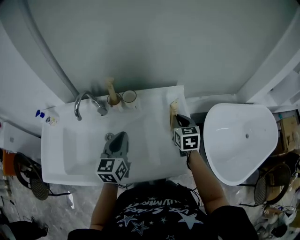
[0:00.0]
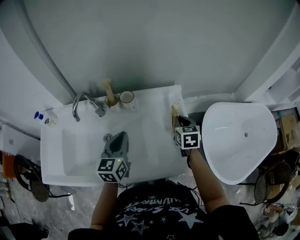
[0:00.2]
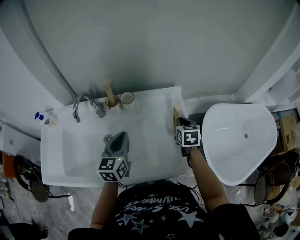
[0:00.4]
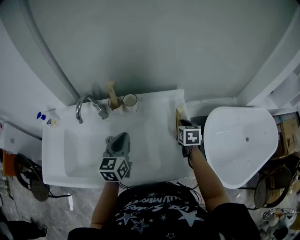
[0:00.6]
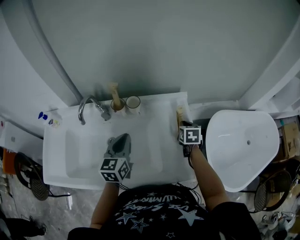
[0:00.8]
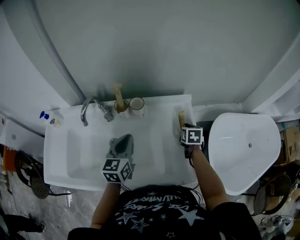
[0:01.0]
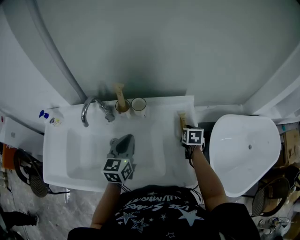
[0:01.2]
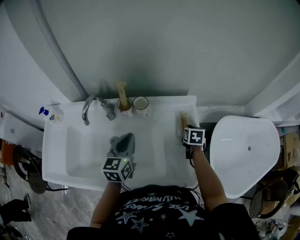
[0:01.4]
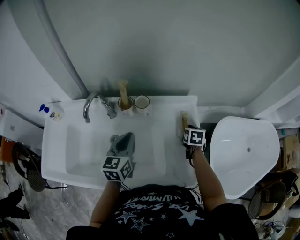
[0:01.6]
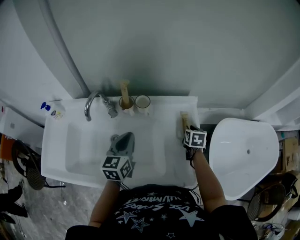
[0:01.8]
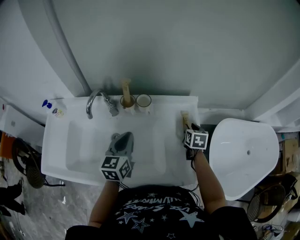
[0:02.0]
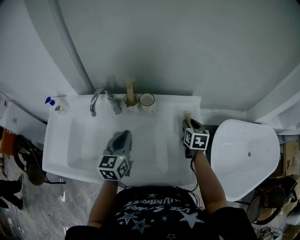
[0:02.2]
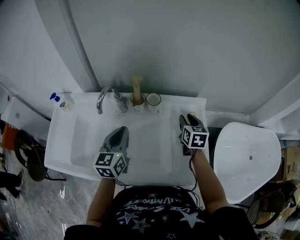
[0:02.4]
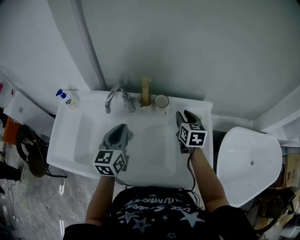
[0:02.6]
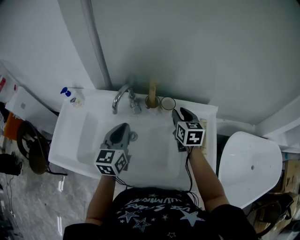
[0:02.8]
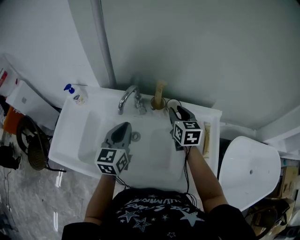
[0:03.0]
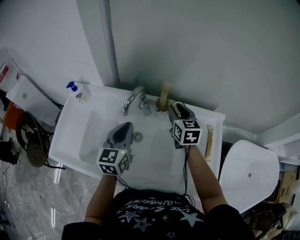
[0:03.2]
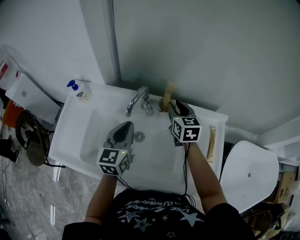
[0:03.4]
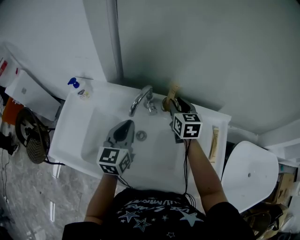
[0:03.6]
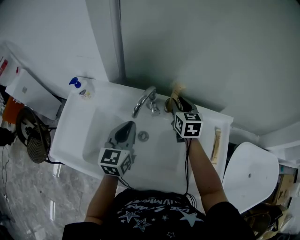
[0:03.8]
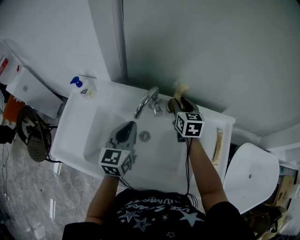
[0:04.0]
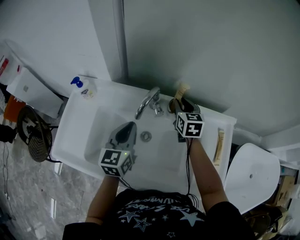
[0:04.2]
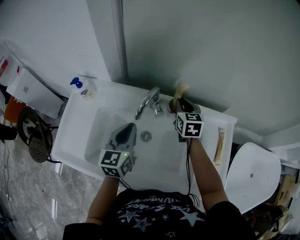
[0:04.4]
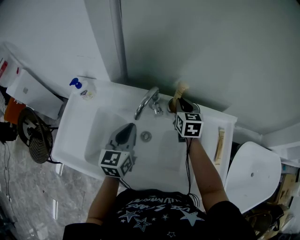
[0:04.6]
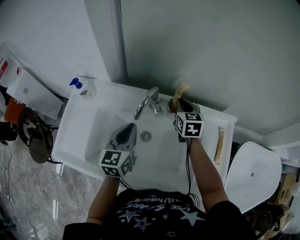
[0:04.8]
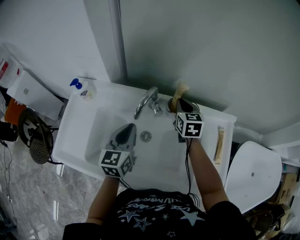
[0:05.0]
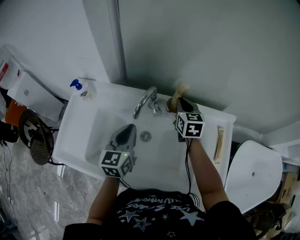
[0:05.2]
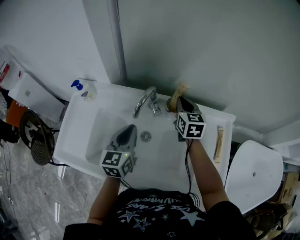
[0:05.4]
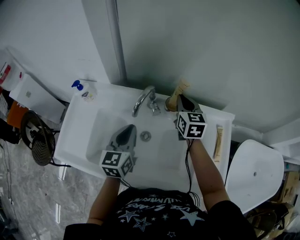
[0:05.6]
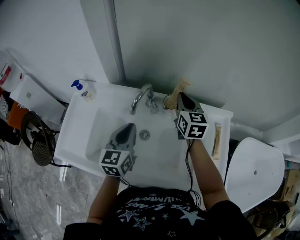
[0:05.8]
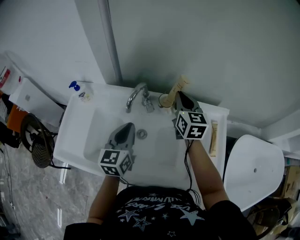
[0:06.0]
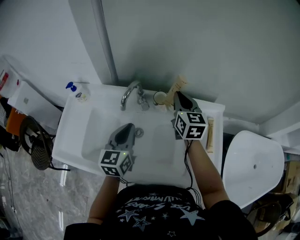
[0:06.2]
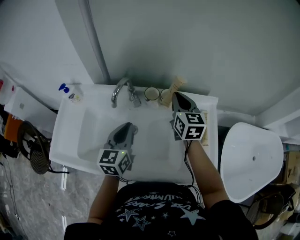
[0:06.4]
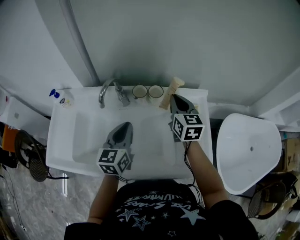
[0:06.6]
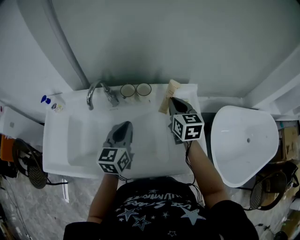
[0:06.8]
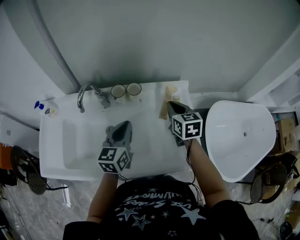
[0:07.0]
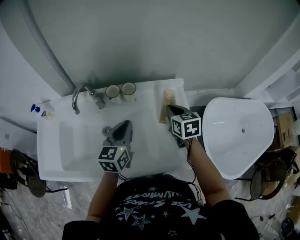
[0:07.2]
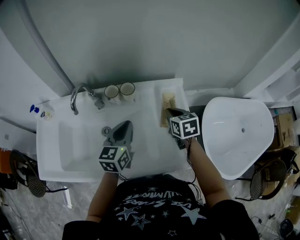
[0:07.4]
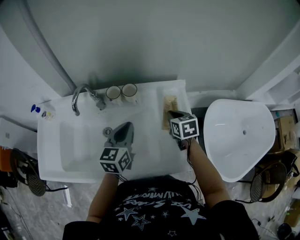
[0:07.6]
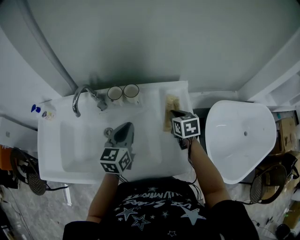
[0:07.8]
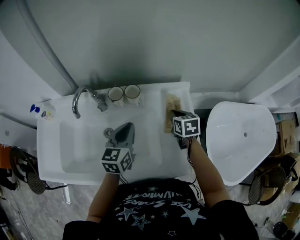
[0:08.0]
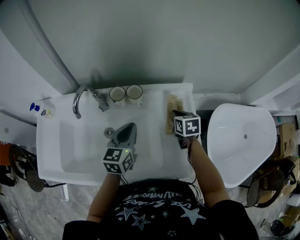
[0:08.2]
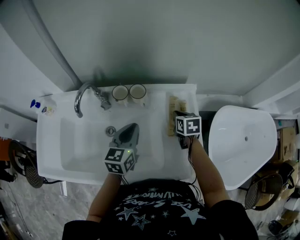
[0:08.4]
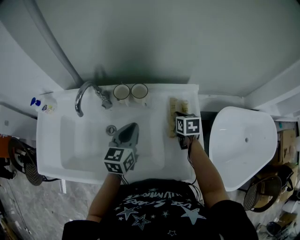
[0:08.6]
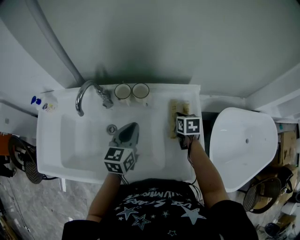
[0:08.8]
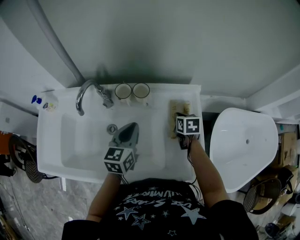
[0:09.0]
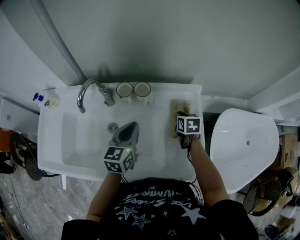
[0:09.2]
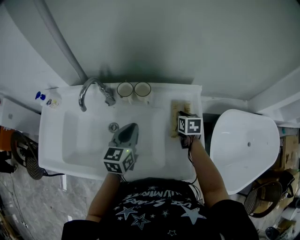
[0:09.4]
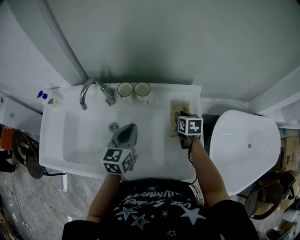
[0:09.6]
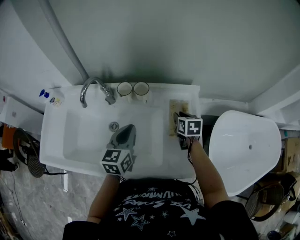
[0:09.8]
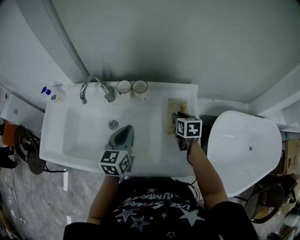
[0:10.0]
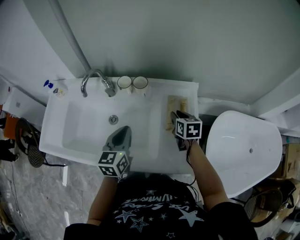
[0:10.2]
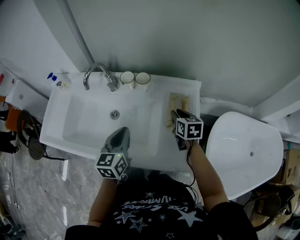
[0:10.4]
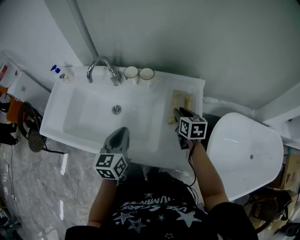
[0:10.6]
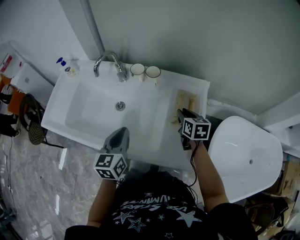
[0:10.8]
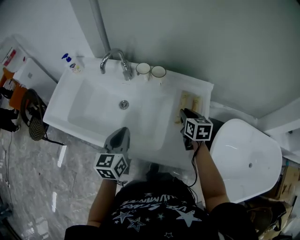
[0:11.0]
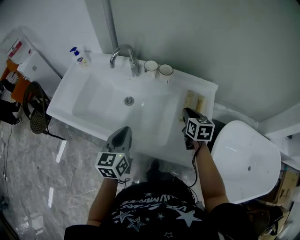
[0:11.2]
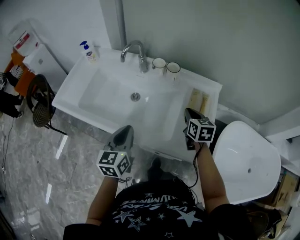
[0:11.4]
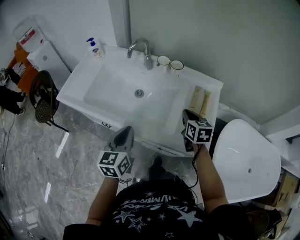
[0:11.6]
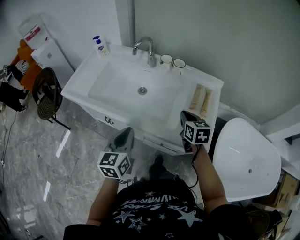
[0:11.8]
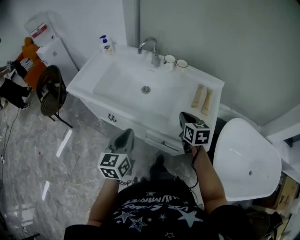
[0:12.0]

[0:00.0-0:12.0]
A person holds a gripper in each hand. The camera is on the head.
0:00.0 to 0:01.6: The left gripper moves about 5 cm. Meanwhile the right gripper moves downward and forward, roughly 10 cm, and turns by roughly 20 degrees.
0:01.6 to 0:03.0: The right gripper goes about 30 cm to the left and upward, swivels about 40 degrees, and opens its fingers; the left gripper heads to the left, covering approximately 15 cm.
0:03.0 to 0:04.4: The right gripper goes some 10 cm forward and to the left. The left gripper heads to the left, covering approximately 5 cm.
0:04.4 to 0:06.0: The left gripper changes place by approximately 5 cm; the right gripper heads upward, covering some 10 cm.
0:06.0 to 0:07.6: The right gripper heads to the right, downward and backward, covering about 30 cm, and swivels roughly 30 degrees. The left gripper is displaced to the right by some 20 cm.
0:07.6 to 0:09.0: The left gripper moves about 5 cm. Meanwhile the right gripper heads downward and forward, covering about 10 cm.
0:09.0 to 0:10.4: The right gripper heads upward and backward, covering about 10 cm, and opens up, while the left gripper shifts some 10 cm backward.
0:10.4 to 0:12.0: The grippers both shift backward and to the left by some 25 cm. The right gripper closes.

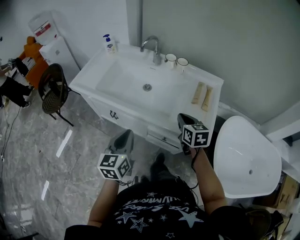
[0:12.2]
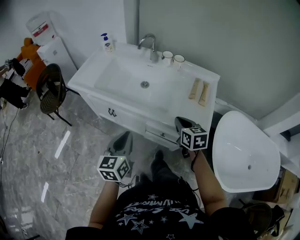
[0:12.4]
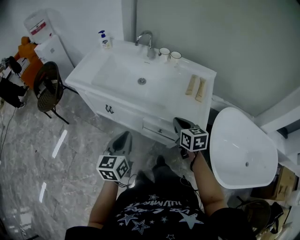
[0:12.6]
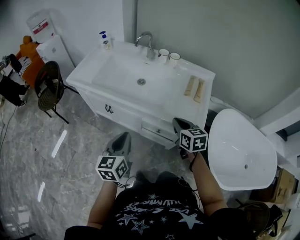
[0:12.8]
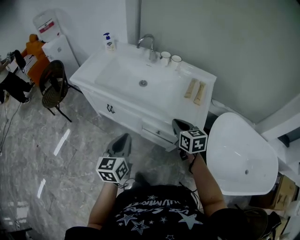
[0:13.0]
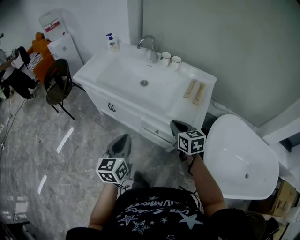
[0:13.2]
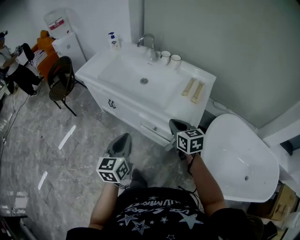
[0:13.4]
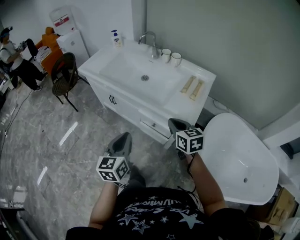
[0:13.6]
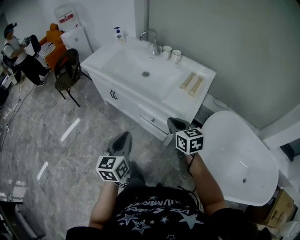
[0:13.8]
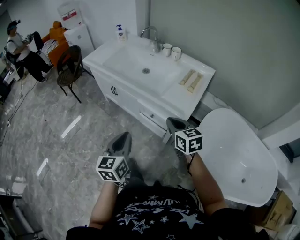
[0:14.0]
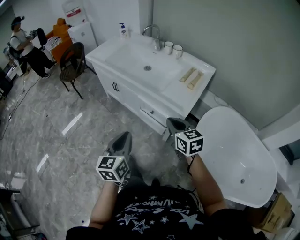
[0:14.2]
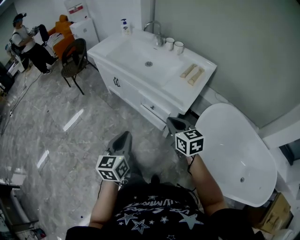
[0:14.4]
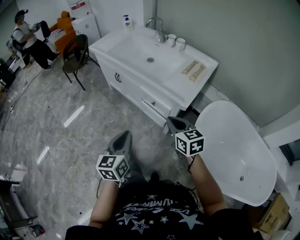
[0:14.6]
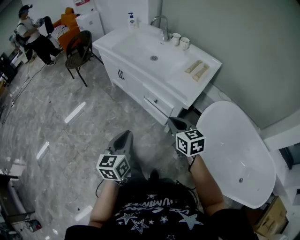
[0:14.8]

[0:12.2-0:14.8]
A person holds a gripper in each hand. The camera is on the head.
0:12.2 to 0:13.4: The left gripper moves backward and to the right, some 15 cm. Meanwhile the right gripper goes roughly 10 cm backward.
0:13.4 to 0:14.8: The grippers both shift backward by approximately 20 cm.

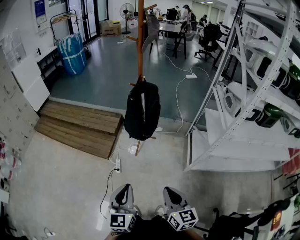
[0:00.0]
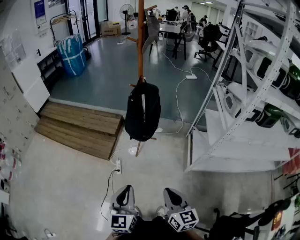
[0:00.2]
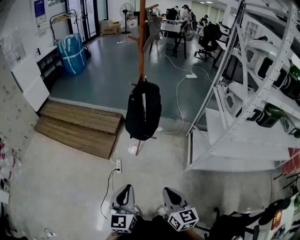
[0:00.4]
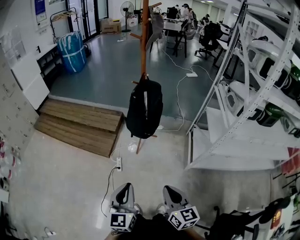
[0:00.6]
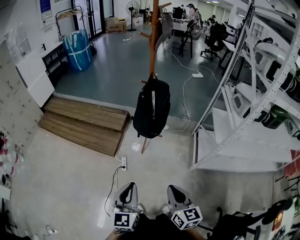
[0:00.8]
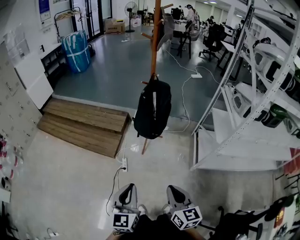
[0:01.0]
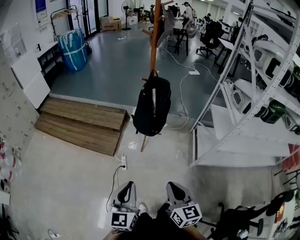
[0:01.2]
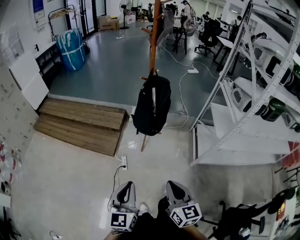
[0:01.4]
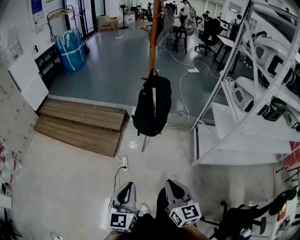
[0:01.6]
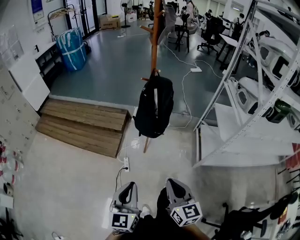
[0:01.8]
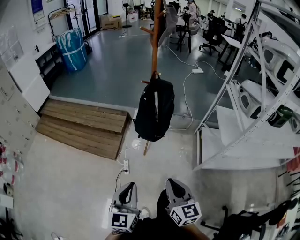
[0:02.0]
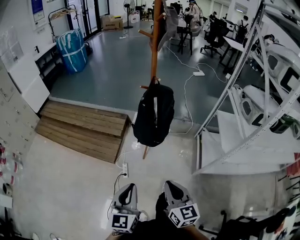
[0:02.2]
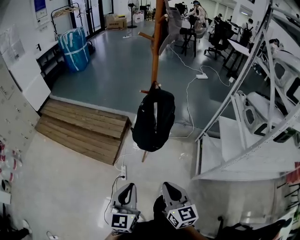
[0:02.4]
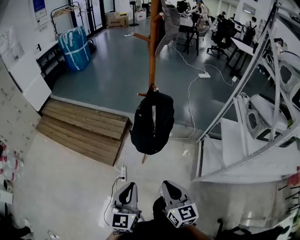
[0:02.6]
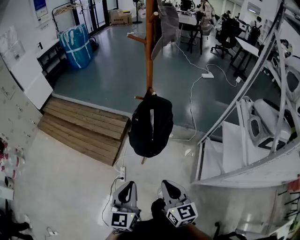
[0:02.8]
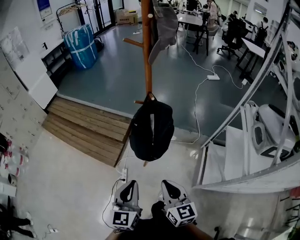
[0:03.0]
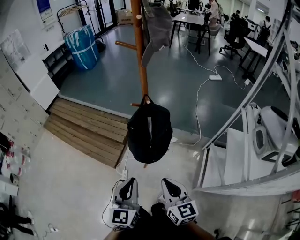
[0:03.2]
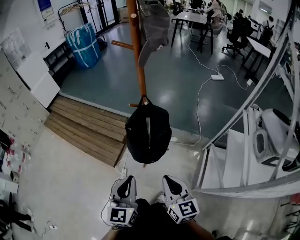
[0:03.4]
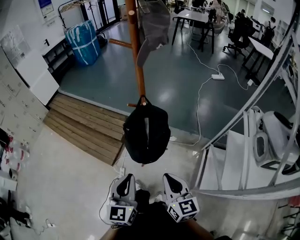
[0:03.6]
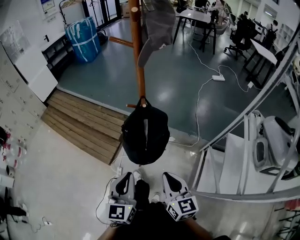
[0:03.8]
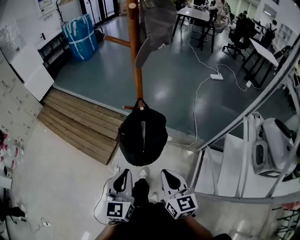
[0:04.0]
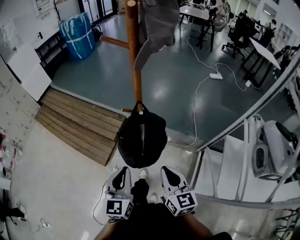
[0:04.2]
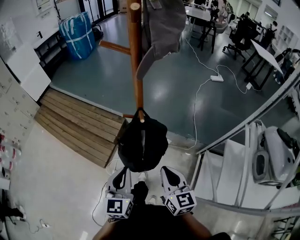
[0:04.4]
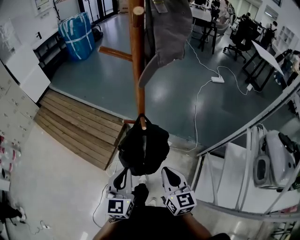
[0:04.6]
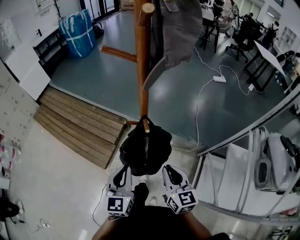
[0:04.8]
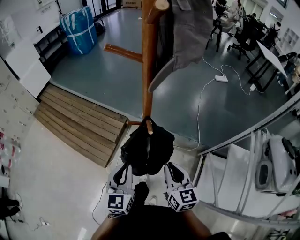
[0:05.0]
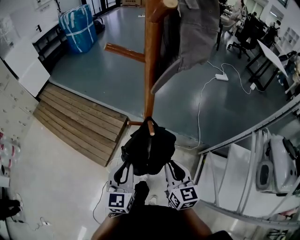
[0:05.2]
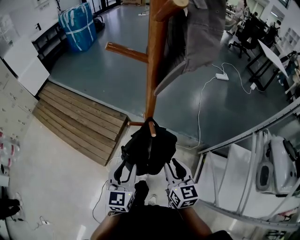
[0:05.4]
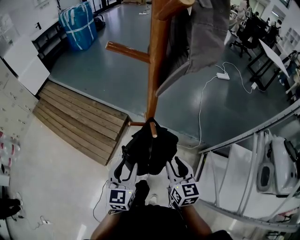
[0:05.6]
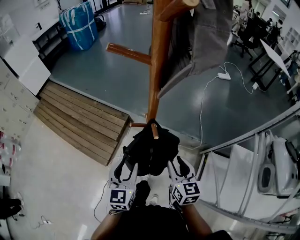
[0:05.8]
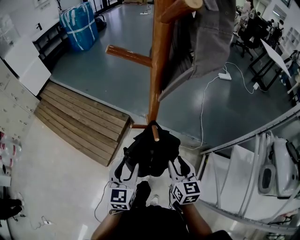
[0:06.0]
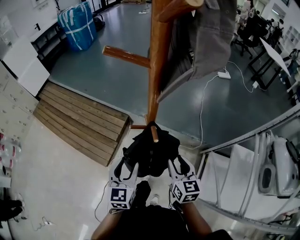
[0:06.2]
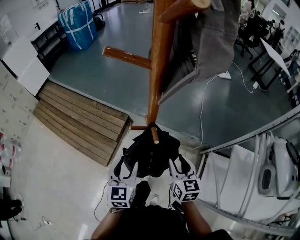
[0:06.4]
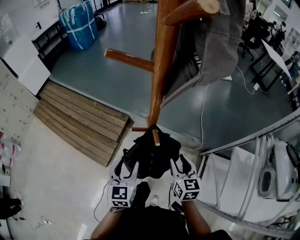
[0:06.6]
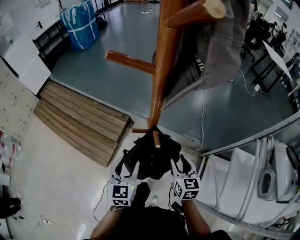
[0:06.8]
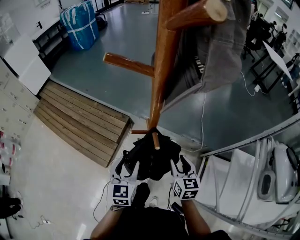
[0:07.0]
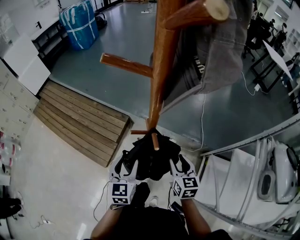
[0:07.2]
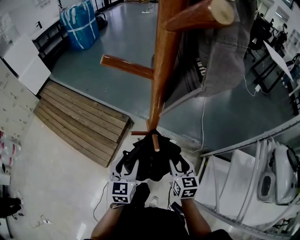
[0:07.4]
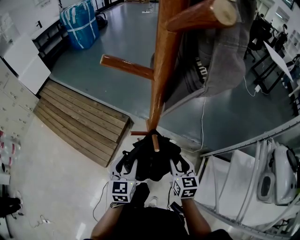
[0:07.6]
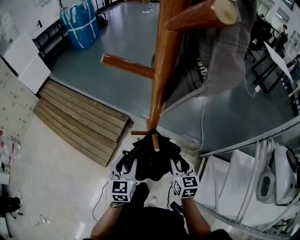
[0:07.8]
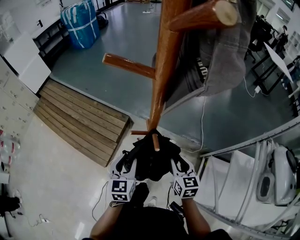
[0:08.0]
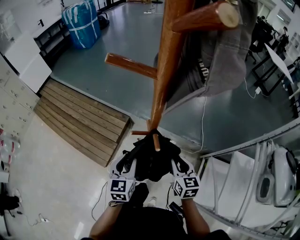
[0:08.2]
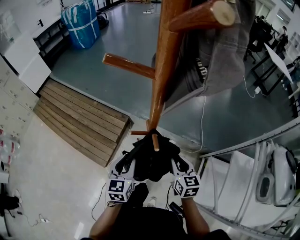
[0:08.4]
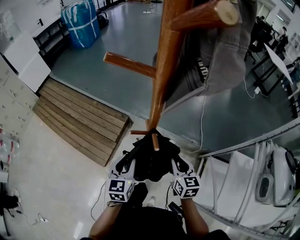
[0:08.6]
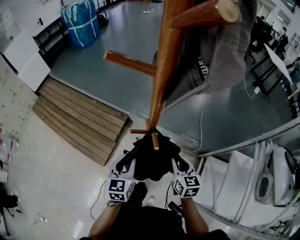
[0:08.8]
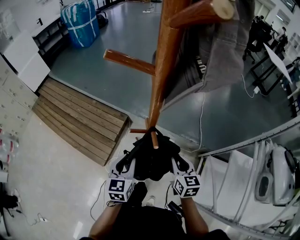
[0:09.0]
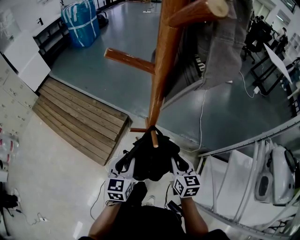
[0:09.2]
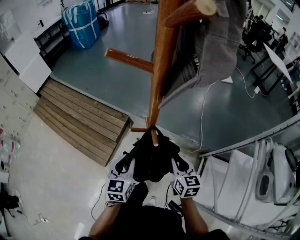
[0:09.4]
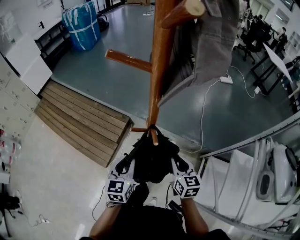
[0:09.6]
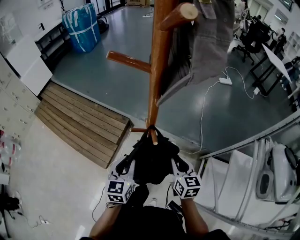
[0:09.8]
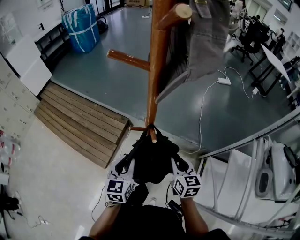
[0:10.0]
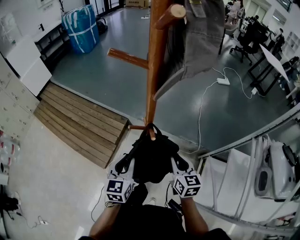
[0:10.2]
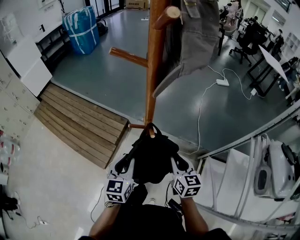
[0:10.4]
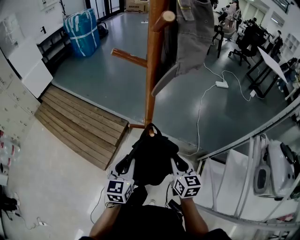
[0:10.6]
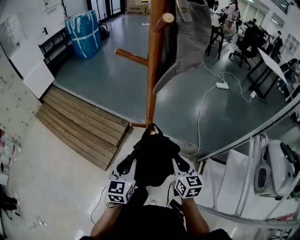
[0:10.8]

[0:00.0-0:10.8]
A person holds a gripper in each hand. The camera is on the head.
0:00.0 to 0:01.6: Both grippers move to the left, some 10 cm.
0:01.6 to 0:03.0: Both grippers travel together forward and to the right, about 30 cm.
0:03.0 to 0:04.6: Both grippers move forward, about 20 cm.
0:04.6 to 0:06.2: The grippers both shift forward and downward by some 10 cm. The left gripper opens up. Meanwhile the right gripper opens.
0:06.2 to 0:07.8: The right gripper ends up roughly 5 cm from where it was. Meanwhile the left gripper ends up approximately 5 cm from where it was.
0:07.8 to 0:09.2: The grippers make only small movements.
0:09.2 to 0:10.8: The left gripper travels backward and upward by about 5 cm, while the right gripper shifts by some 5 cm.
